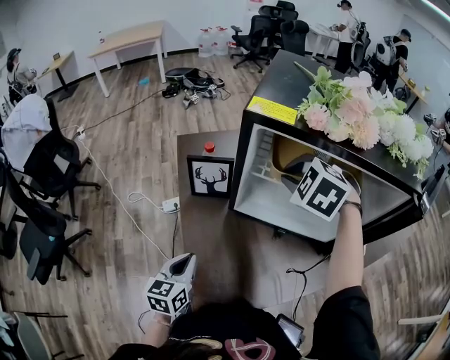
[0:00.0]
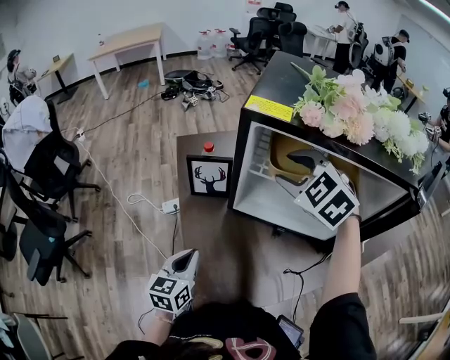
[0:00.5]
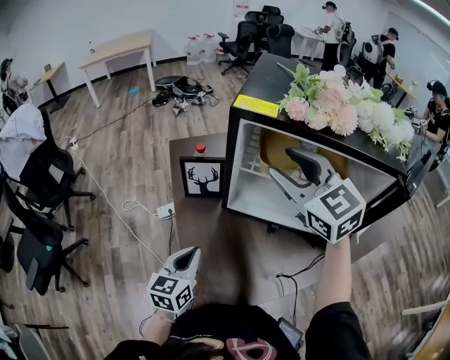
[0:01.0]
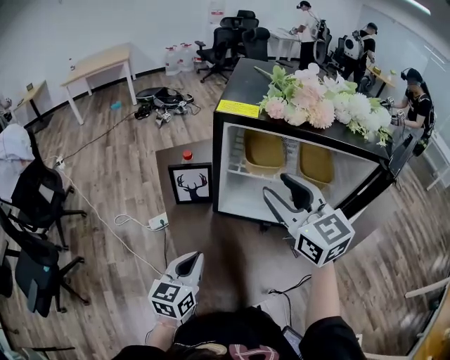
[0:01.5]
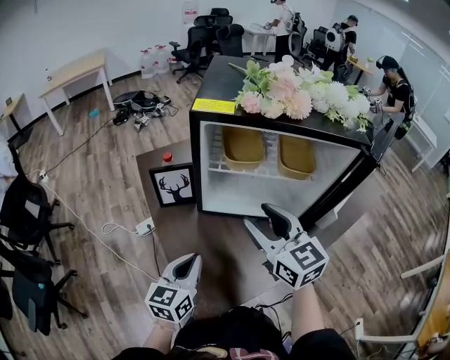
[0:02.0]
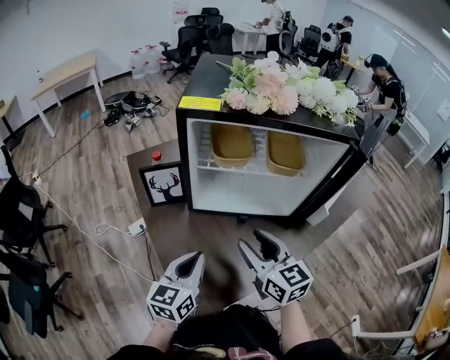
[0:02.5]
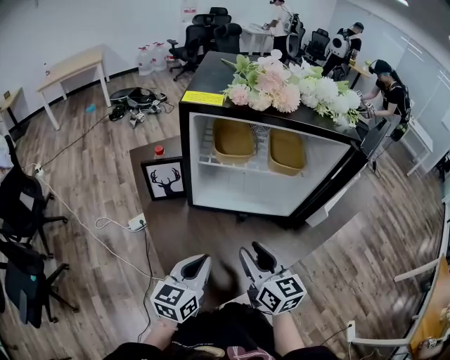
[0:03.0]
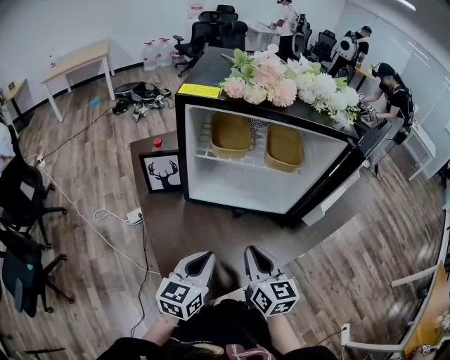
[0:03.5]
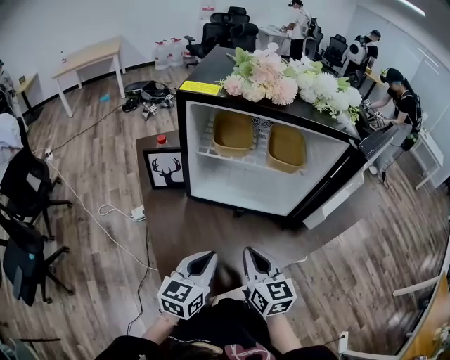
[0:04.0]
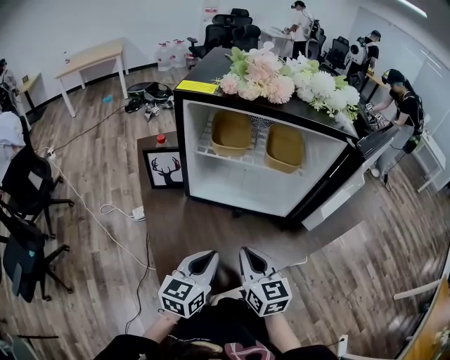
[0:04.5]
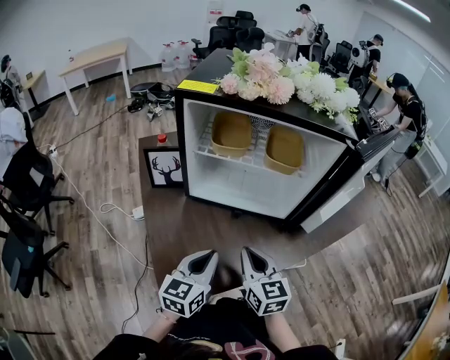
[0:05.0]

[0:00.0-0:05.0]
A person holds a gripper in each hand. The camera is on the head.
0:00.0 to 0:02.5: The right gripper heads backward, covering some 20 cm, points its fingers roughly 40 degrees further upward, and opens its fingers; the left gripper moves to the right and upward, some 15 cm, and changes its angle by roughly 20 degrees.
0:02.5 to 0:05.0: The left gripper is displaced to the right by roughly 10 cm, while the right gripper heads downward and to the right, covering about 10 cm, and closes its fingers.

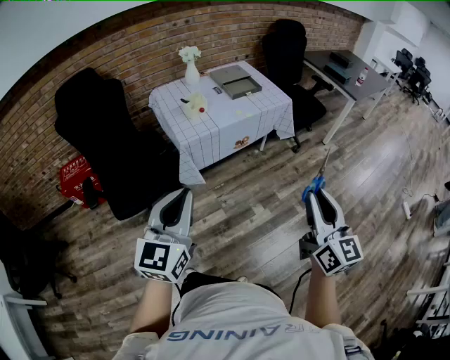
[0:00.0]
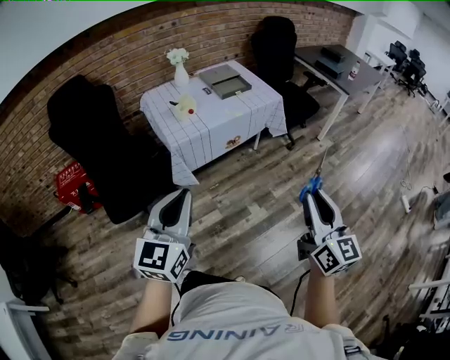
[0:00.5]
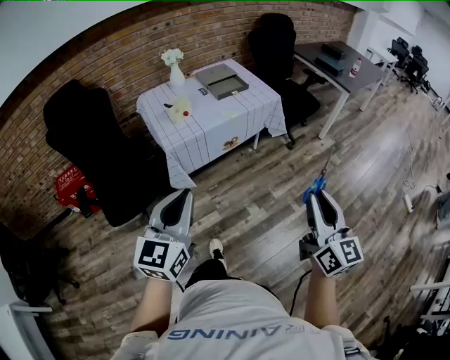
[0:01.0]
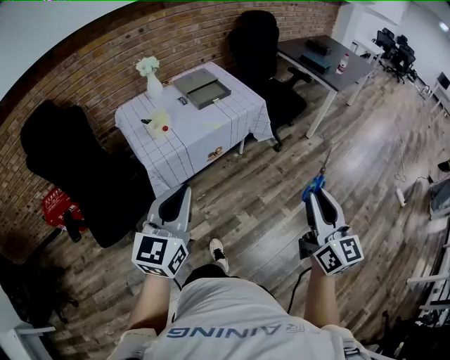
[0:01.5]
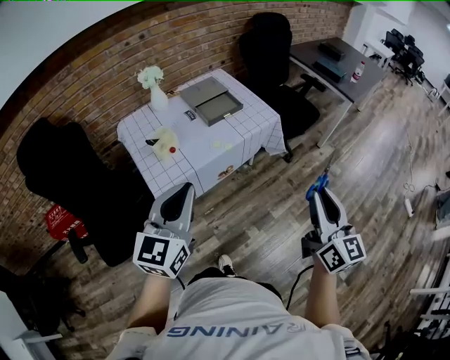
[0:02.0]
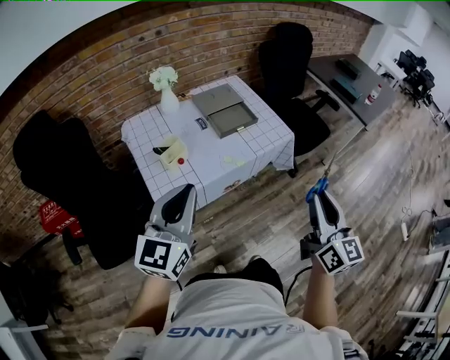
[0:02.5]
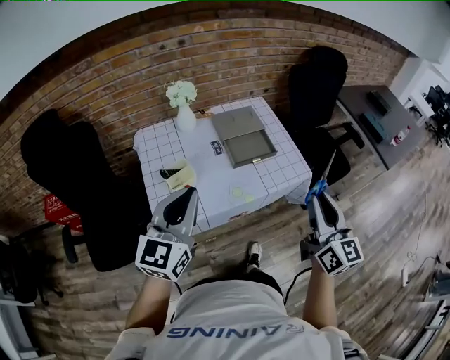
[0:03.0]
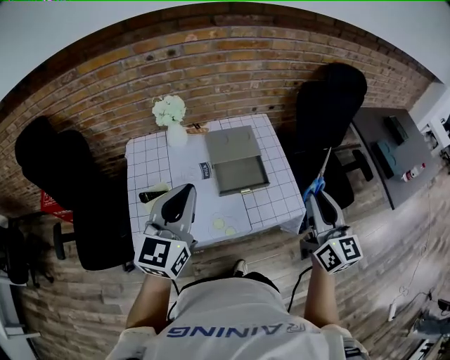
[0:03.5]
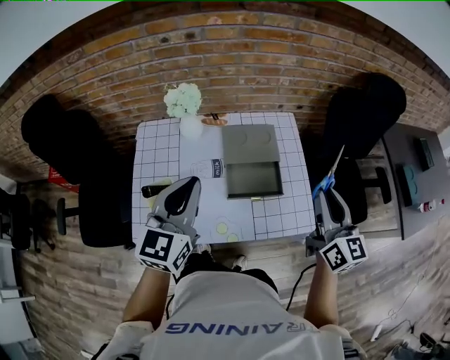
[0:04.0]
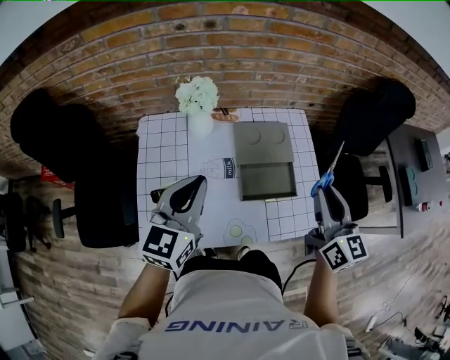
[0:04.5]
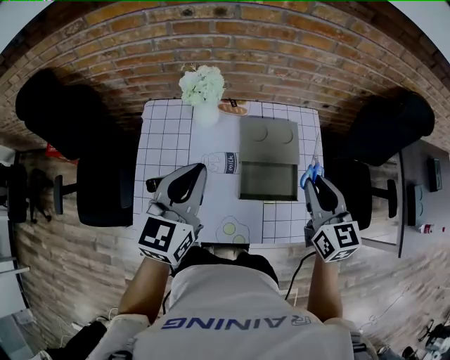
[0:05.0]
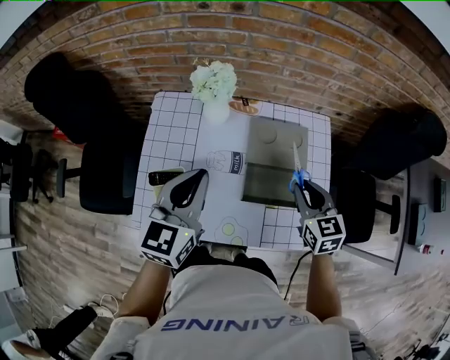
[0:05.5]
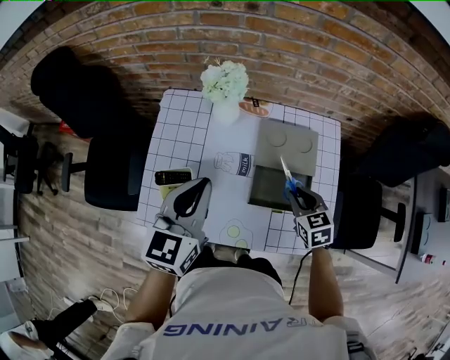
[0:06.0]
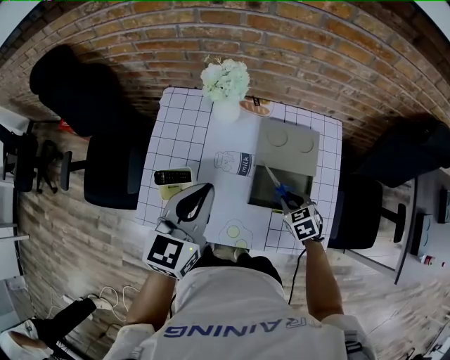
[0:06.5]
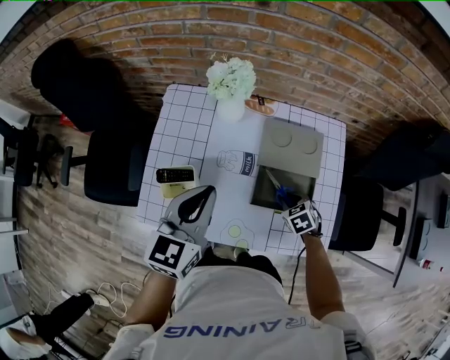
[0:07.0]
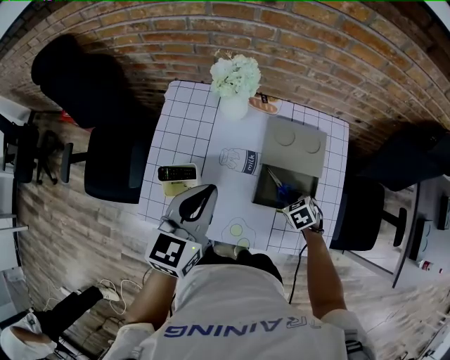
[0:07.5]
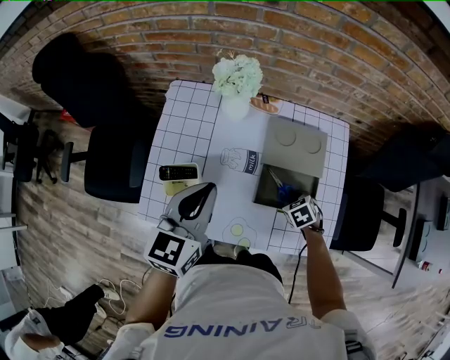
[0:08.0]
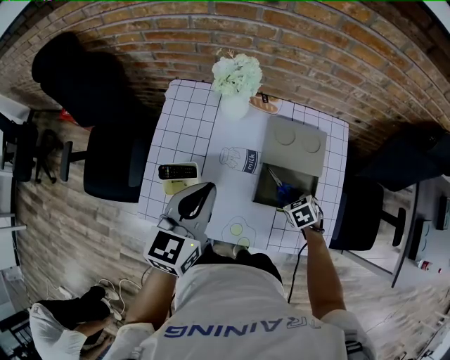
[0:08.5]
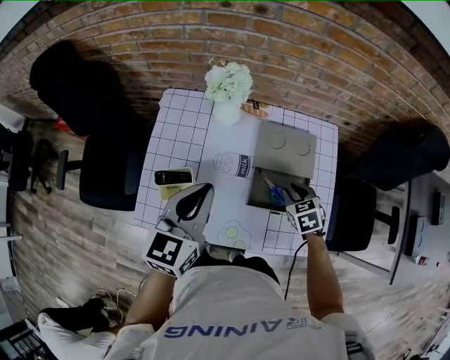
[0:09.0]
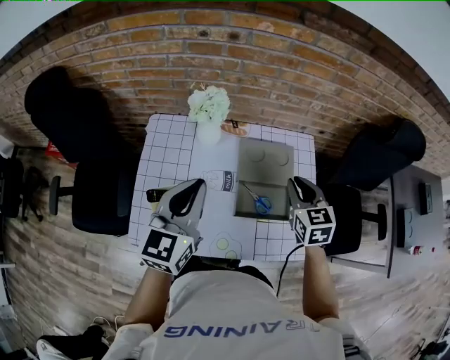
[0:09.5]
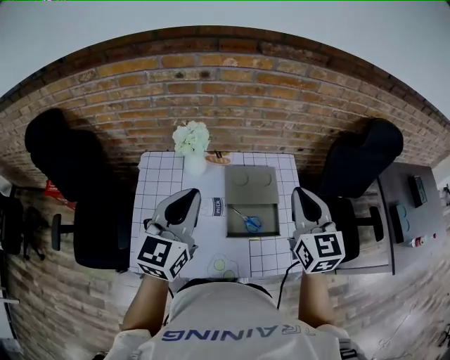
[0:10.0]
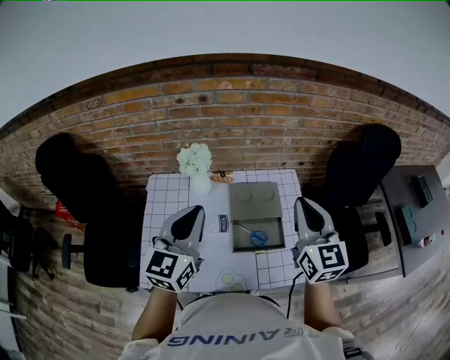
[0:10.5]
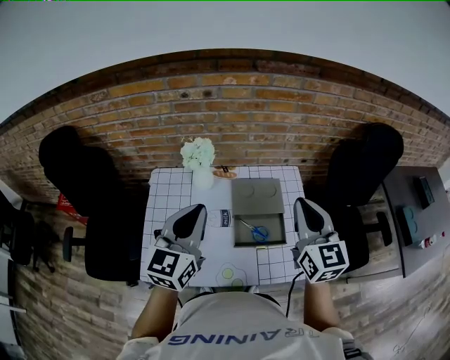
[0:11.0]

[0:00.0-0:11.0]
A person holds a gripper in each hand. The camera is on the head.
0:00.0 to 0:02.0: The grippers both shift forward by some 30 cm.
0:02.0 to 0:03.5: The two grippers go approximately 40 cm forward. The left gripper turns by some 20 degrees. Meanwhile the right gripper swivels about 20 degrees.
0:03.5 to 0:05.5: The left gripper shifts approximately 15 cm forward and downward, and changes its angle by about 20 degrees. Meanwhile the right gripper moves forward and downward, roughly 30 cm, and tilts its fingers some 30 degrees downward.
0:05.5 to 0:07.5: The right gripper goes some 20 cm downward, and tips its fingers downward by about 40 degrees.
0:07.5 to 0:09.0: The right gripper heads upward, covering roughly 10 cm.
0:09.0 to 0:11.0: The right gripper moves upward, roughly 35 cm, angles its fingers upward, by approximately 50 degrees, and closes. Meanwhile the left gripper heads upward, covering about 10 cm.

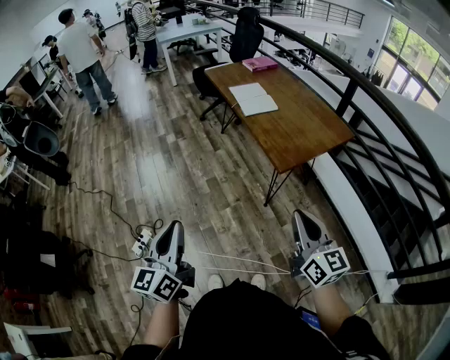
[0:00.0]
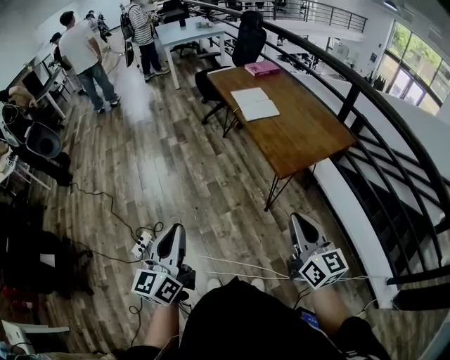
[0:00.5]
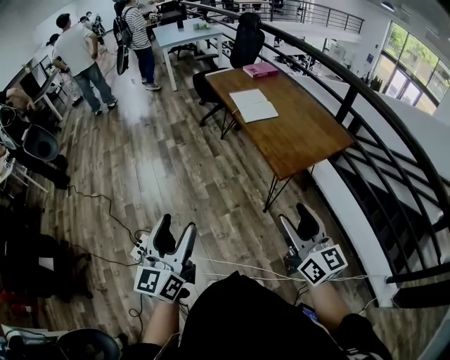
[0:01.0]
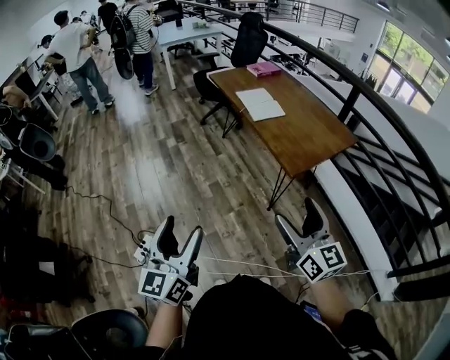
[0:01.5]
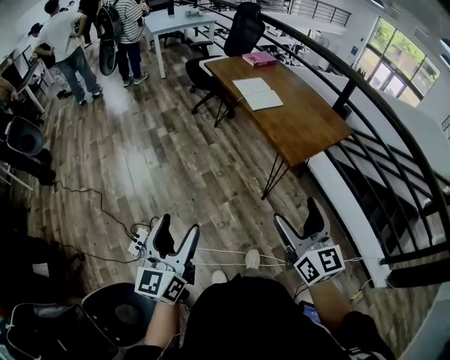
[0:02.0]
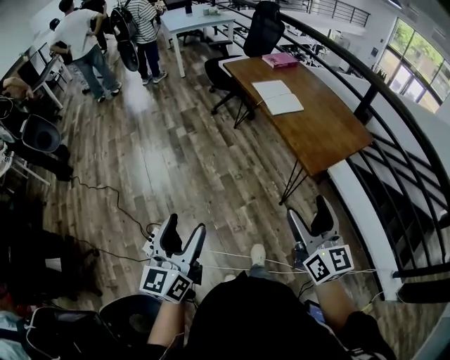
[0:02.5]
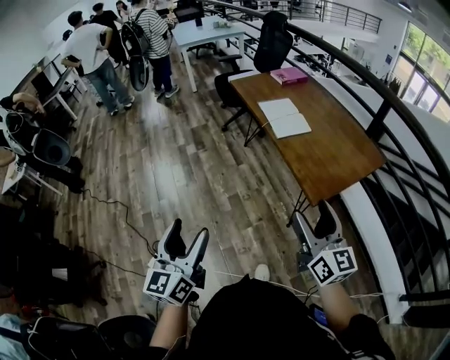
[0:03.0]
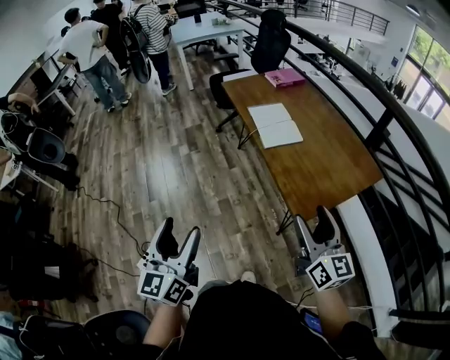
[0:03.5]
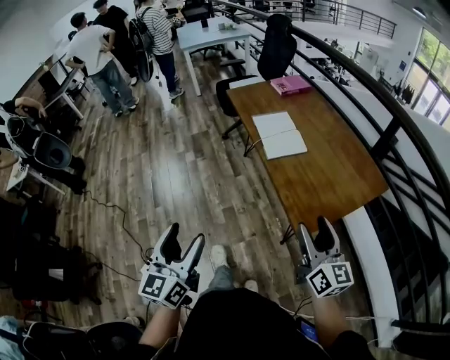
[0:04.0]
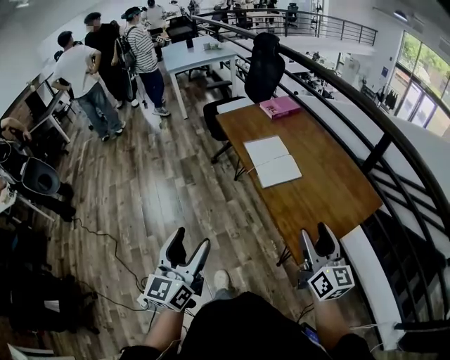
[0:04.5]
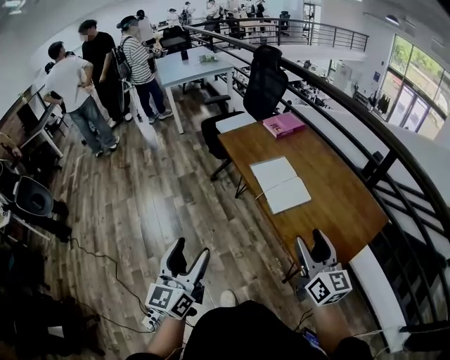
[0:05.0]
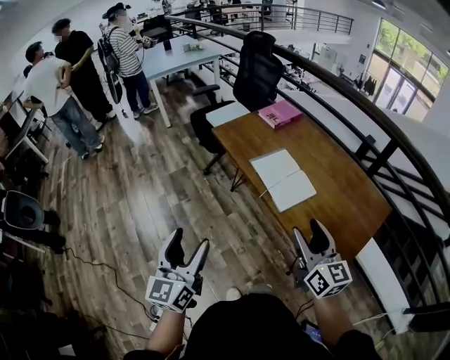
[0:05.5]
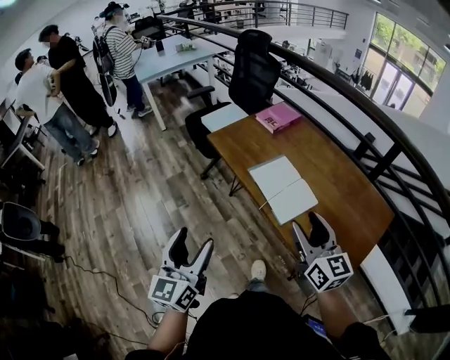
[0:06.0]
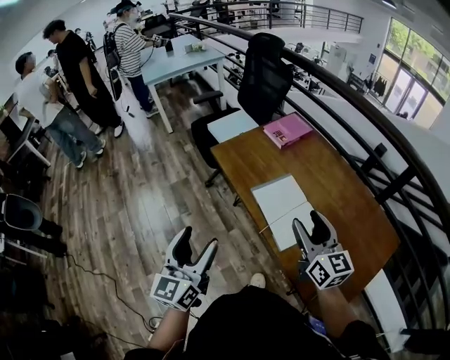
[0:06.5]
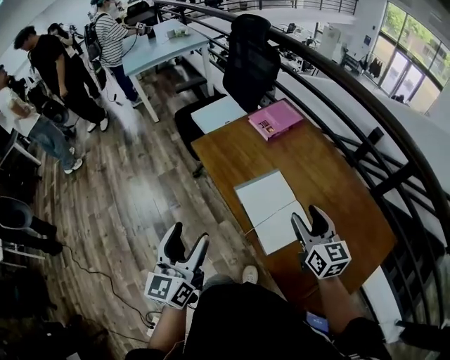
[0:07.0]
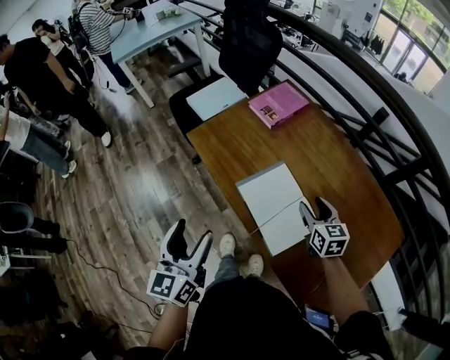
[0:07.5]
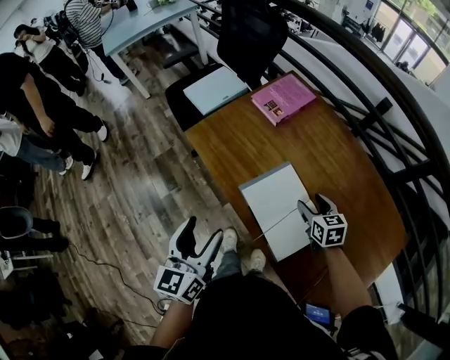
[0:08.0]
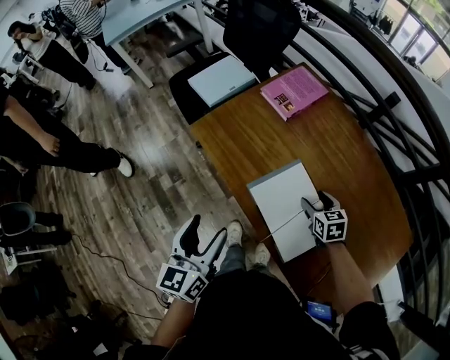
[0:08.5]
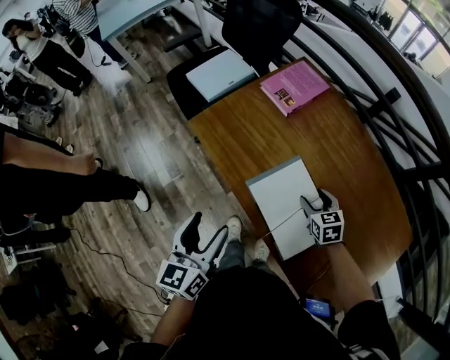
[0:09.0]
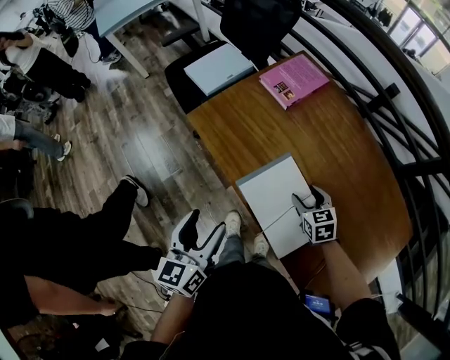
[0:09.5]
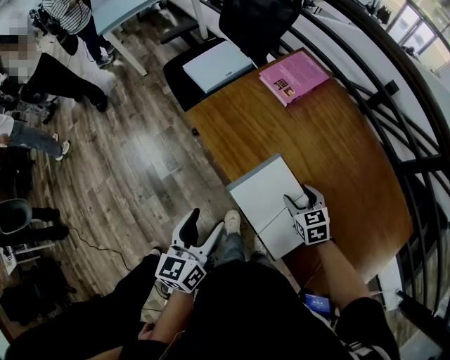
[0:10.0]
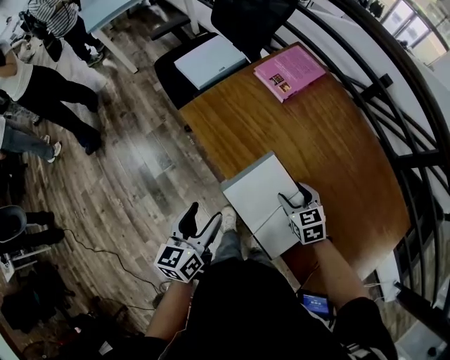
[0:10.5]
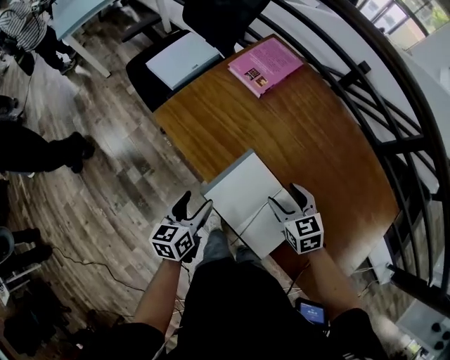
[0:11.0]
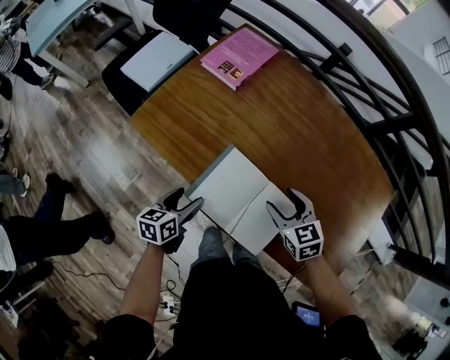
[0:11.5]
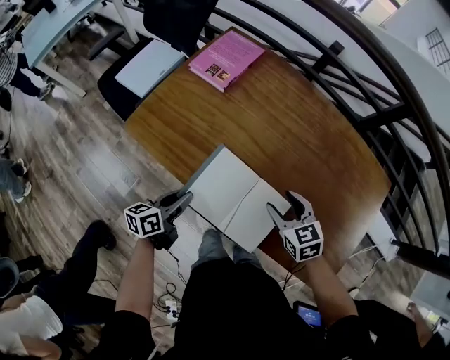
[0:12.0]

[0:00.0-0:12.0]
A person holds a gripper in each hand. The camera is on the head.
0:00.0 to 0:02.0: Both grippers move to the left, roughly 10 cm. The right gripper opens its fingers; the left gripper opens its fingers.
0:02.0 to 0:04.0: Both grippers move forward and to the right, approximately 30 cm. The right gripper closes up.
0:04.0 to 0:06.0: The left gripper is displaced forward by some 35 cm; the right gripper is displaced forward and to the left by approximately 30 cm.
0:06.0 to 0:08.0: The left gripper heads forward, covering some 25 cm. The right gripper heads forward, downward and to the right, covering roughly 40 cm, and tips its fingers downward by approximately 40 degrees.
0:08.0 to 0:10.0: The left gripper heads downward, covering roughly 5 cm, while the right gripper is displaced to the left by about 10 cm.
0:10.0 to 0:12.0: The left gripper travels downward by some 15 cm, rotates approximately 40 degrees, and closes its fingers. Meanwhile the right gripper shifts by about 10 cm.
